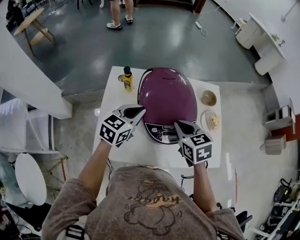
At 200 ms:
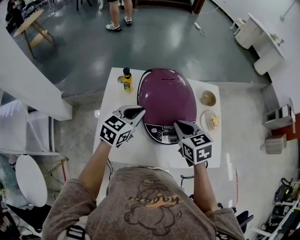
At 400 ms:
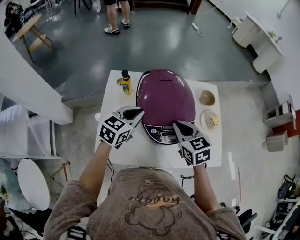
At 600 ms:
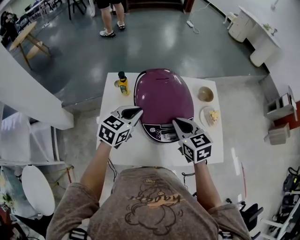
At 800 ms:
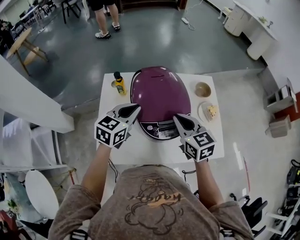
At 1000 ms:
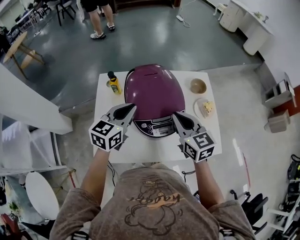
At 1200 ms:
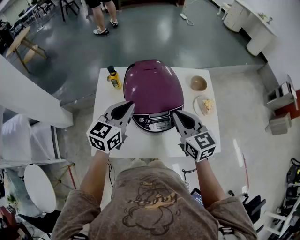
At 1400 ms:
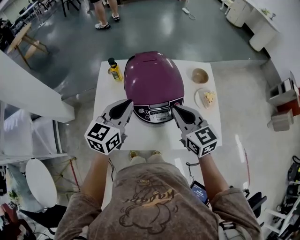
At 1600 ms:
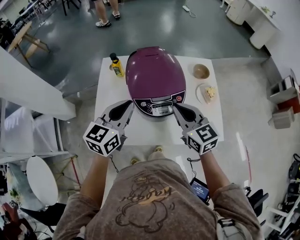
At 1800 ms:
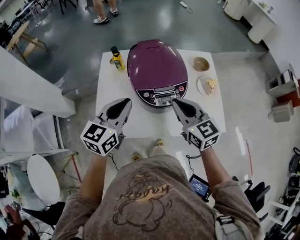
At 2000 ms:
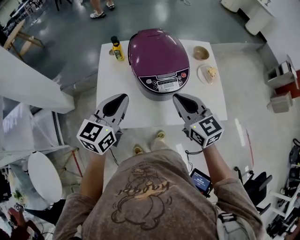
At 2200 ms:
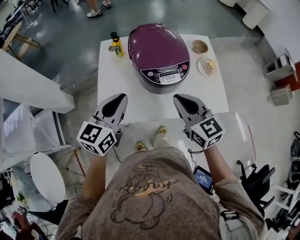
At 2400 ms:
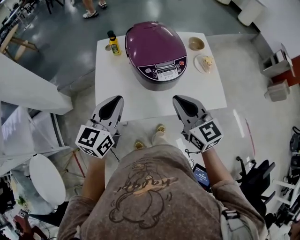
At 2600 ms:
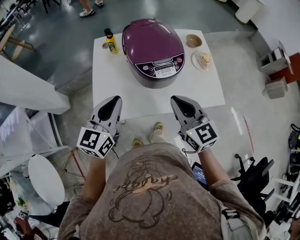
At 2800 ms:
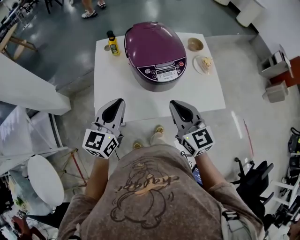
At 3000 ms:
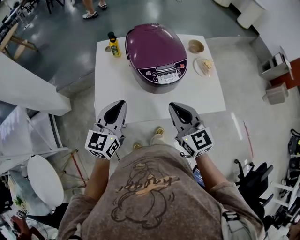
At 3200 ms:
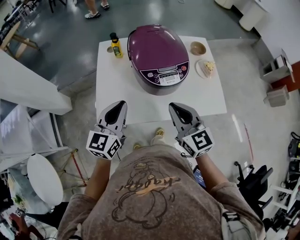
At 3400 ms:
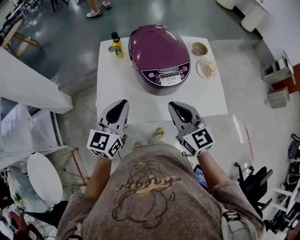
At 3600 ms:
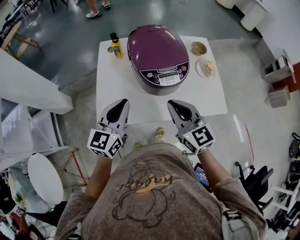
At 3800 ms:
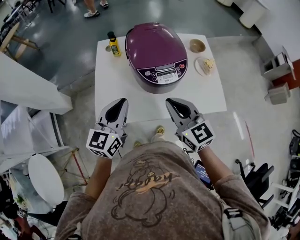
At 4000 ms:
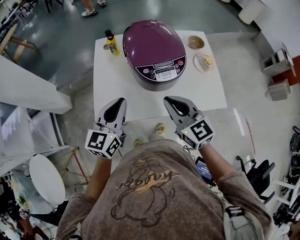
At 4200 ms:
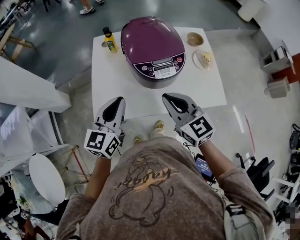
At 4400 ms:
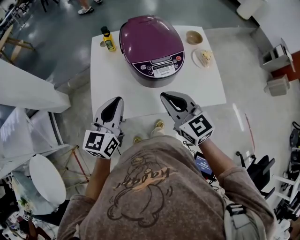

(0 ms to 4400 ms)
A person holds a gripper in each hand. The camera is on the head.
0 ms - 1400 ms: The left gripper travels upward and backward by roughly 10 cm; the right gripper changes place by some 10 cm, and swivels approximately 20 degrees.
1400 ms - 3000 ms: Both grippers travel together backward and to the left, some 15 cm.
3000 ms - 4400 ms: The grippers make only small movements.

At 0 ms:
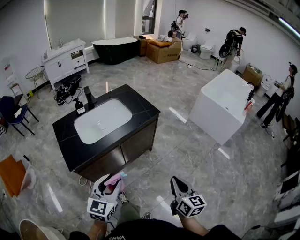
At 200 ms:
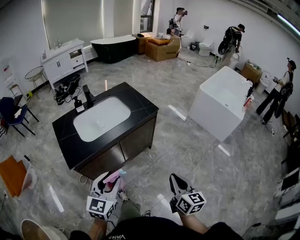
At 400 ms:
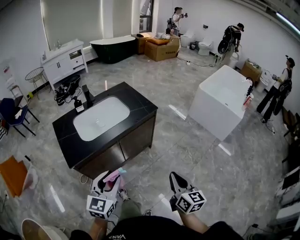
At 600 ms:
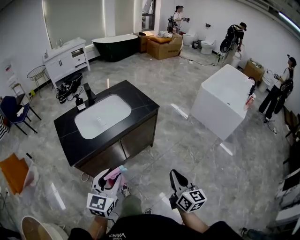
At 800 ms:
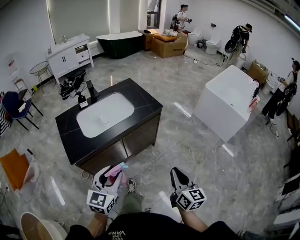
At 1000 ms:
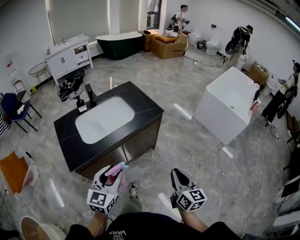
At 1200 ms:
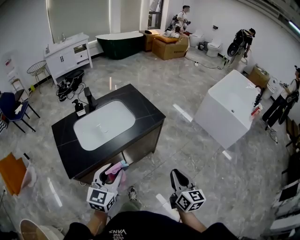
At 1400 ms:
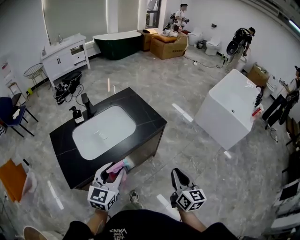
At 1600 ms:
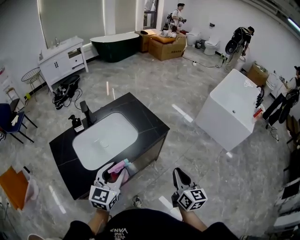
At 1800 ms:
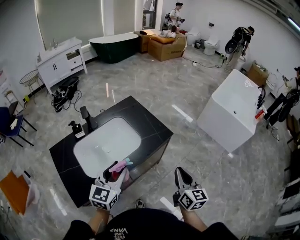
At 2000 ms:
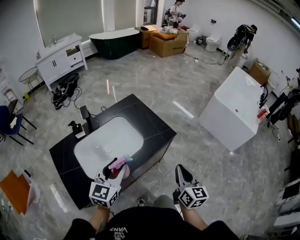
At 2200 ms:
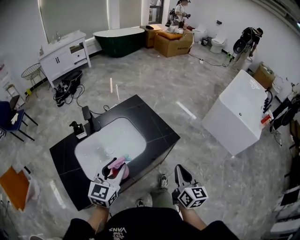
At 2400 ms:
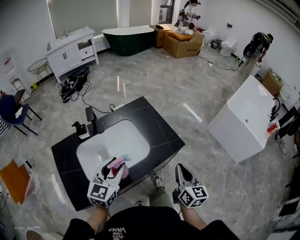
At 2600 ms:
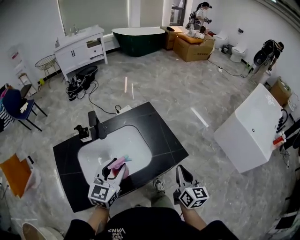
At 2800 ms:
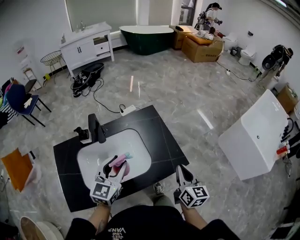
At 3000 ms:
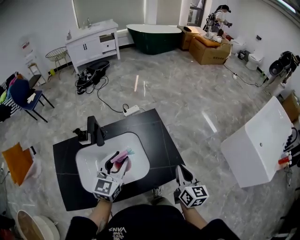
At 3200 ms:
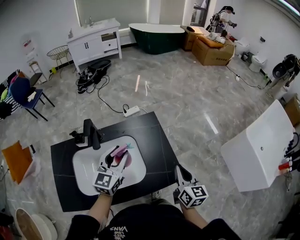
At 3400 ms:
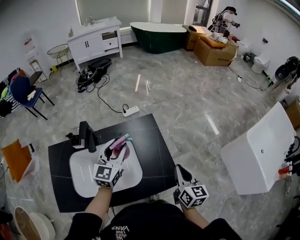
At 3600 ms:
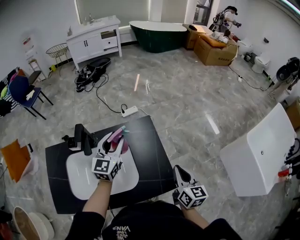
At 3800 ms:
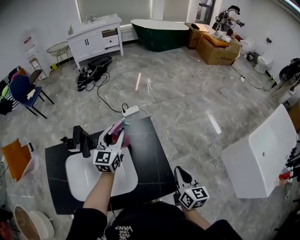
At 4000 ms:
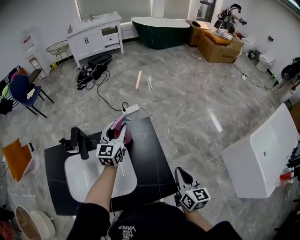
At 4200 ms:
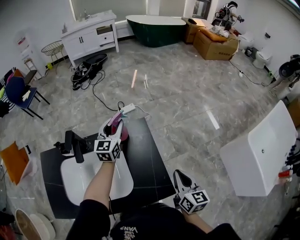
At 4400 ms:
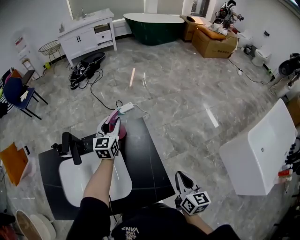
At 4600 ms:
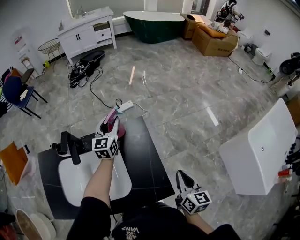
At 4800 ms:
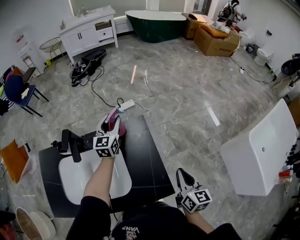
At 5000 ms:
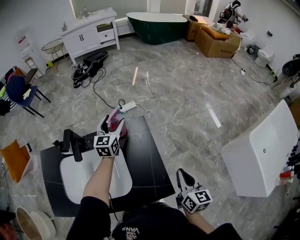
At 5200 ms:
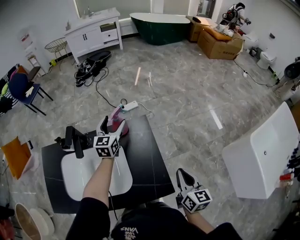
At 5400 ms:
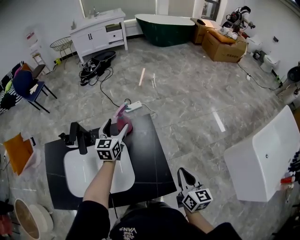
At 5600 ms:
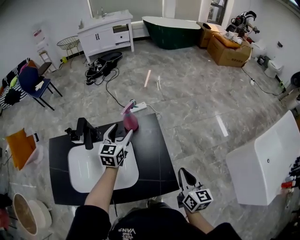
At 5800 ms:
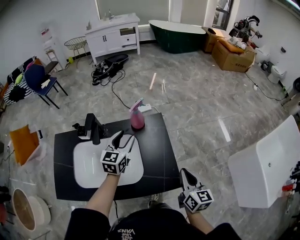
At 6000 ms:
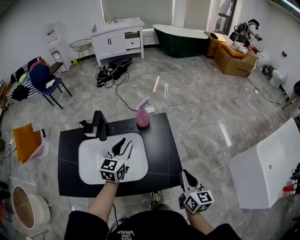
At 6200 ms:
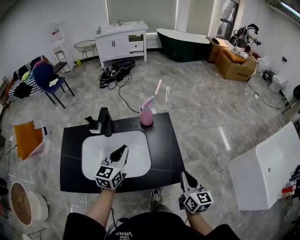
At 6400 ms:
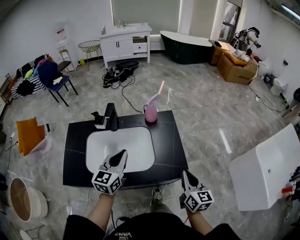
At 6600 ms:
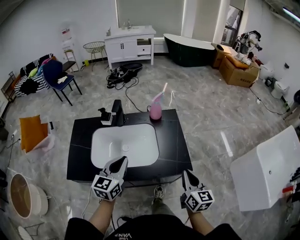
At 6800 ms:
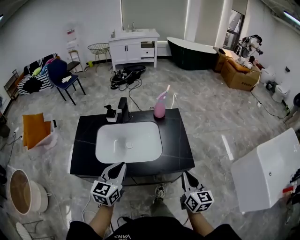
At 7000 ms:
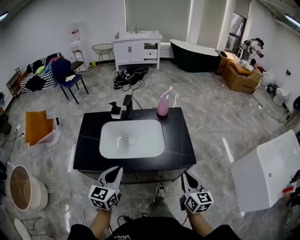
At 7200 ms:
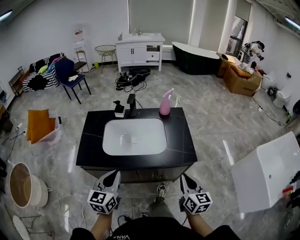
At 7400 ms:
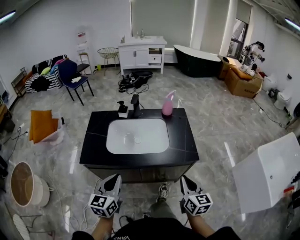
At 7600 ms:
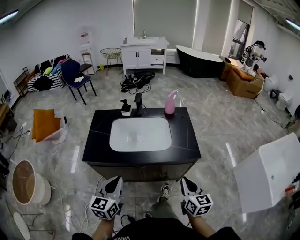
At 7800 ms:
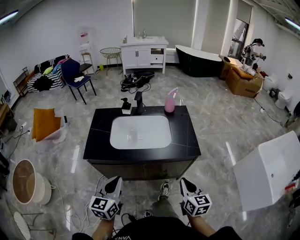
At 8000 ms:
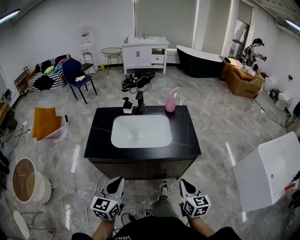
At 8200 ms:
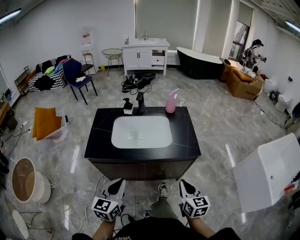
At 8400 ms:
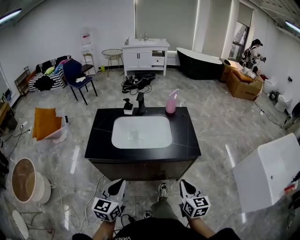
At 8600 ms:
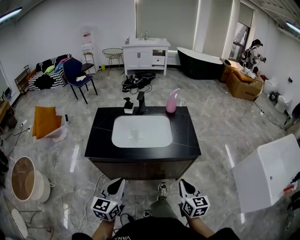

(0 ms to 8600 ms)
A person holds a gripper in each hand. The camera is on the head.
0 ms - 1400 ms: The two grippers go some 20 cm forward.
1400 ms - 2800 ms: The two grippers go some 30 cm forward.
2800 ms - 4400 ms: The left gripper heads forward, covering some 35 cm. Meanwhile the right gripper goes some 20 cm forward and to the right.
4400 ms - 5800 ms: The left gripper travels backward by approximately 15 cm, and opens, then closes again. The right gripper shifts by approximately 5 cm.
5800 ms - 7200 ms: The left gripper travels backward by about 40 cm, and closes up. The right gripper travels backward and to the left by about 25 cm.
7200 ms - 8600 ms: The grippers both shift backward by roughly 10 cm.

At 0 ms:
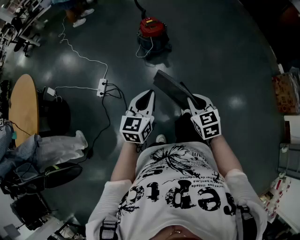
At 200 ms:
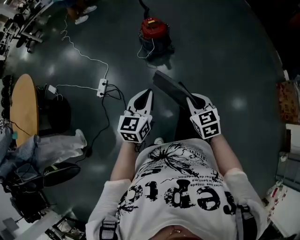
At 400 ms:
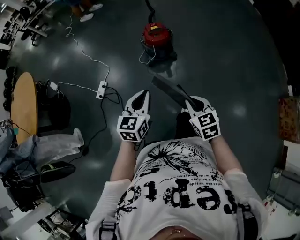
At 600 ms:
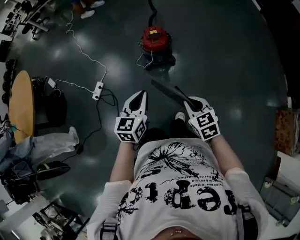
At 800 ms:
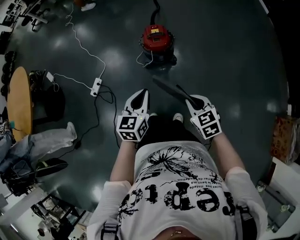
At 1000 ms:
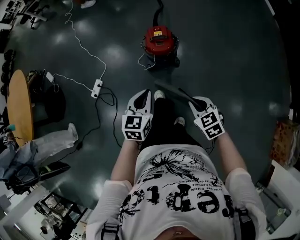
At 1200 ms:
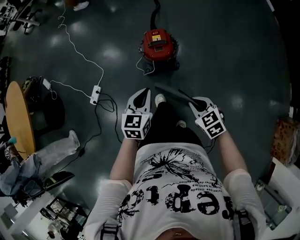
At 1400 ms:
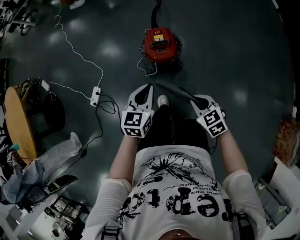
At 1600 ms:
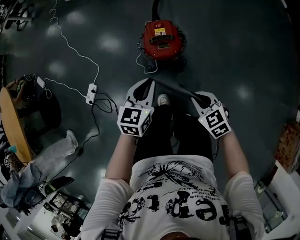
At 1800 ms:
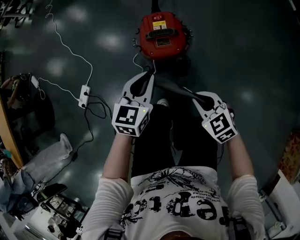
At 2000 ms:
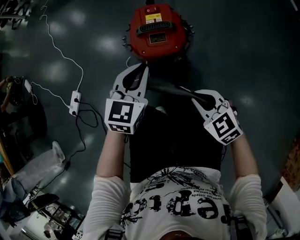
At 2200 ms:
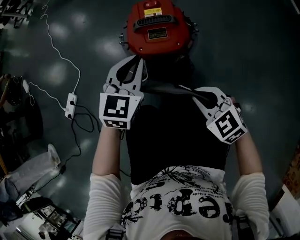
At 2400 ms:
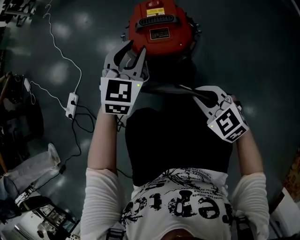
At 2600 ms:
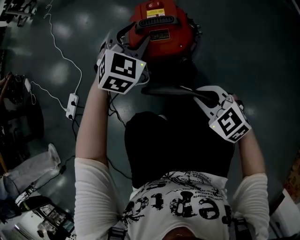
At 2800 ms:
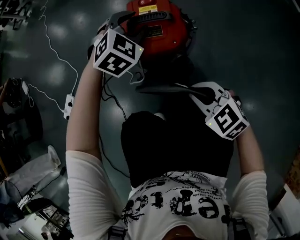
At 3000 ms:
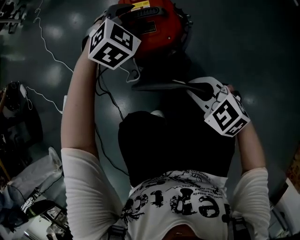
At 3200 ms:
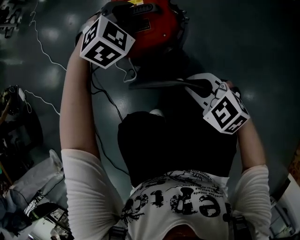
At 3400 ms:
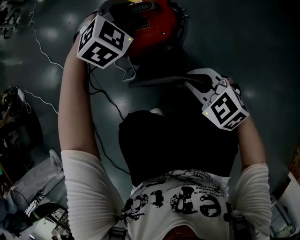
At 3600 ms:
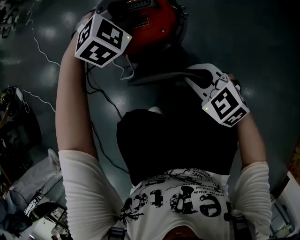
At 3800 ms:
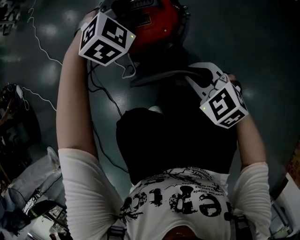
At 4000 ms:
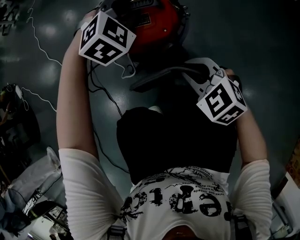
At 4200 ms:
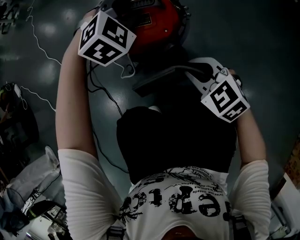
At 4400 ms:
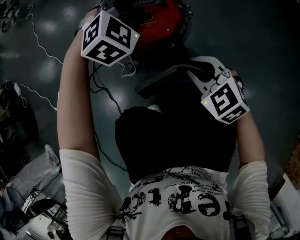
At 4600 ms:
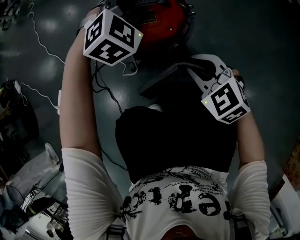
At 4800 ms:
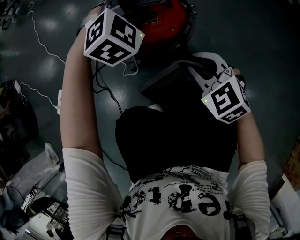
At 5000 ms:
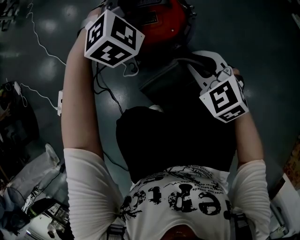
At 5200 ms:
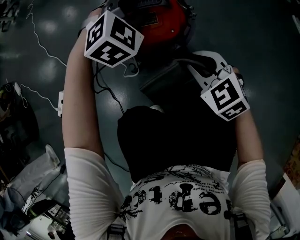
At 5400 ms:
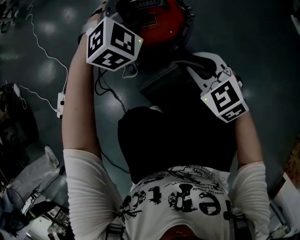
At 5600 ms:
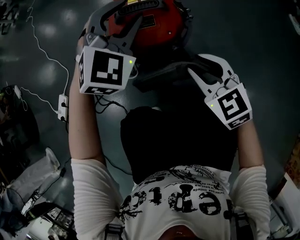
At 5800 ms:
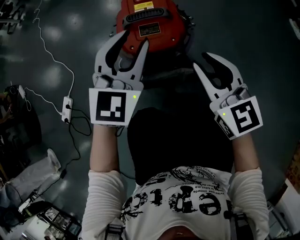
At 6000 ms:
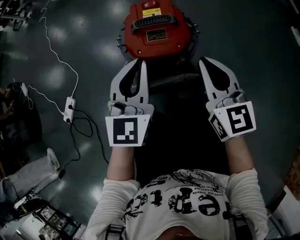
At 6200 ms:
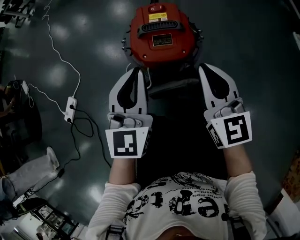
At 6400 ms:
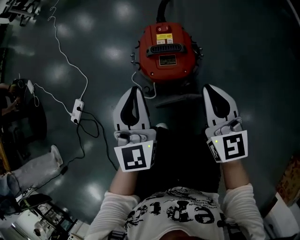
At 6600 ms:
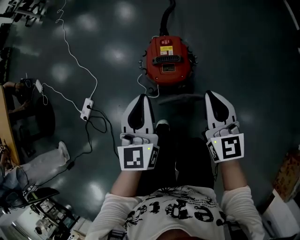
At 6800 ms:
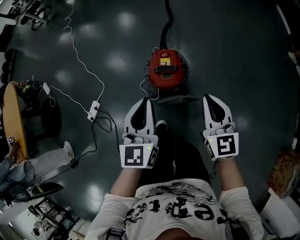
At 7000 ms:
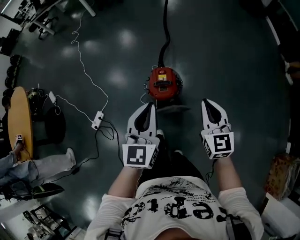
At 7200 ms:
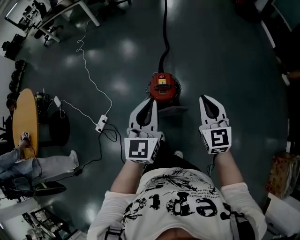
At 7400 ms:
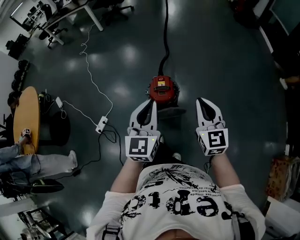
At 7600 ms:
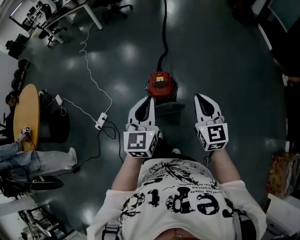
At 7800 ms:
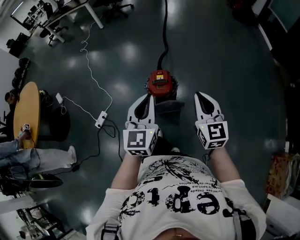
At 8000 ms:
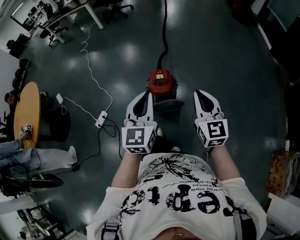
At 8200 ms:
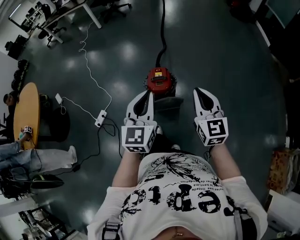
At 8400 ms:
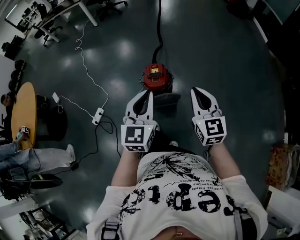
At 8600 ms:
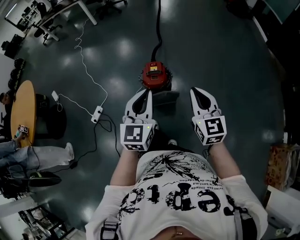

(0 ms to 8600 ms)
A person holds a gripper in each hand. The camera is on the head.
0 ms - 1400 ms: Both grippers are carried forward, about 50 cm. The right gripper changes its angle by about 30 degrees.
1400 ms - 2800 ms: The right gripper heads downward, covering some 35 cm, and turns by some 30 degrees. The left gripper goes about 40 cm downward and forward, rolls clockwise, seen from behind, by some 50 degrees, and opens its fingers.
2800 ms - 4400 ms: The right gripper ends up some 5 cm from where it was.
4400 ms - 5800 ms: The left gripper shifts about 15 cm backward and upward, and points its fingers about 30 degrees further upward. Meanwhile the right gripper shifts roughly 10 cm upward, and swivels about 40 degrees.
5800 ms - 7200 ms: The two grippers go about 50 cm upward. The right gripper closes. The left gripper turns by about 20 degrees, and closes up.
7200 ms - 8600 ms: Both grippers travel together backward, about 10 cm.

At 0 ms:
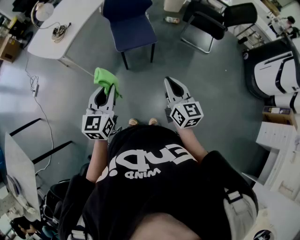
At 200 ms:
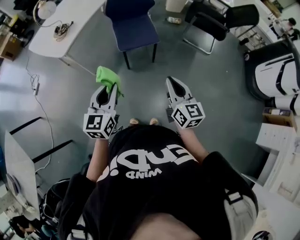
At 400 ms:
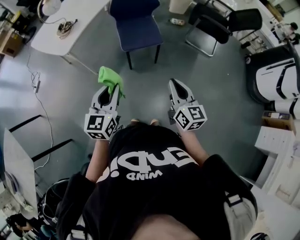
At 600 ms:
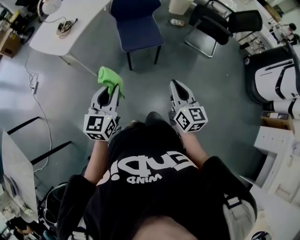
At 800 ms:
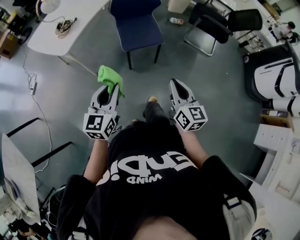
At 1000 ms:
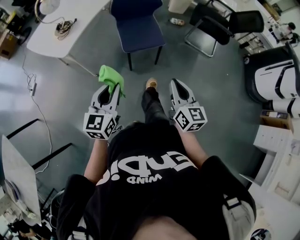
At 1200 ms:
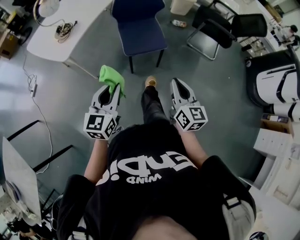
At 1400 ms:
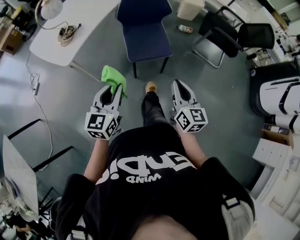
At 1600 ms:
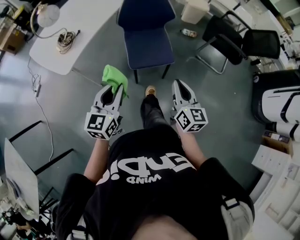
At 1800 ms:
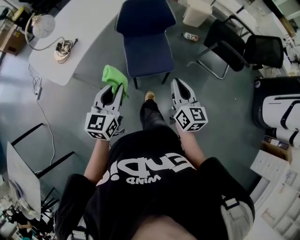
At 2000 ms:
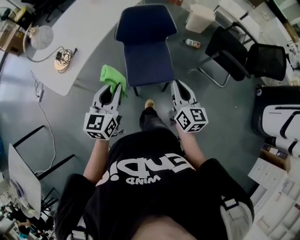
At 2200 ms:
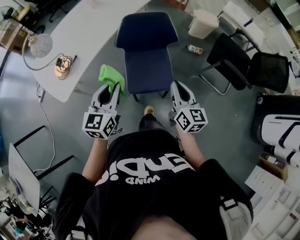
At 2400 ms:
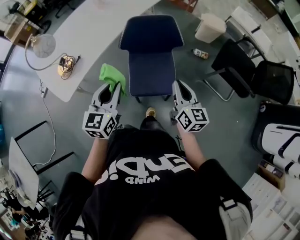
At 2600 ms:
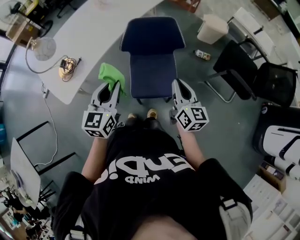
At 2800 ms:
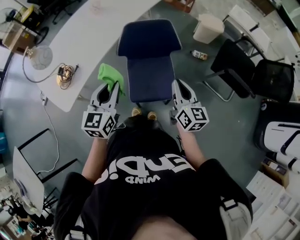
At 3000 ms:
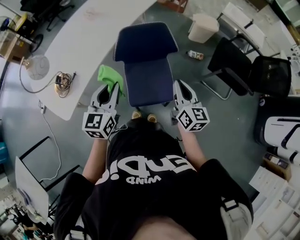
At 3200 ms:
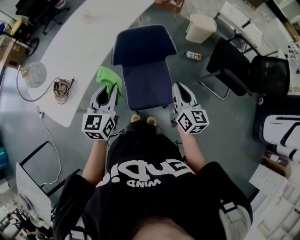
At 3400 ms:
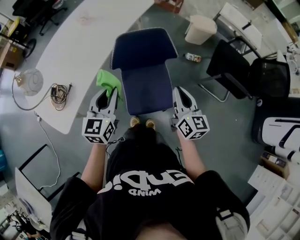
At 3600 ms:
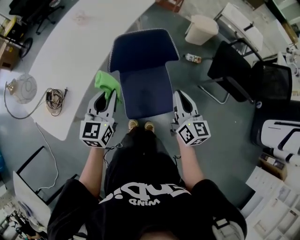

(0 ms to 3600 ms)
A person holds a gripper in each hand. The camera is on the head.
0 ms - 1800 ms: The grippers both shift forward by some 30 cm.
1800 ms - 3600 ms: The two grippers go about 30 cm forward.
